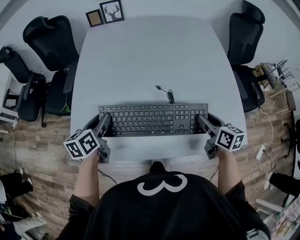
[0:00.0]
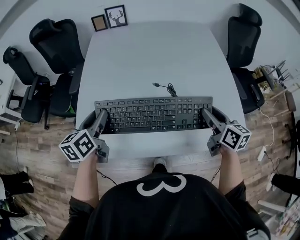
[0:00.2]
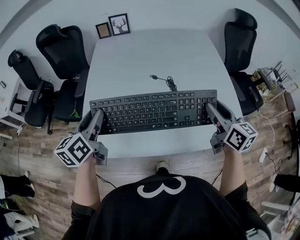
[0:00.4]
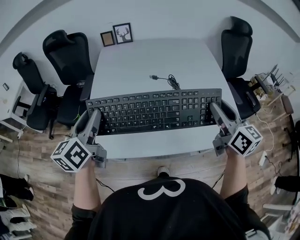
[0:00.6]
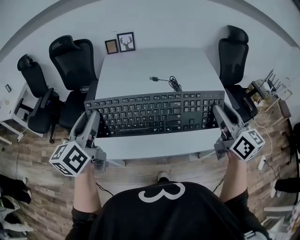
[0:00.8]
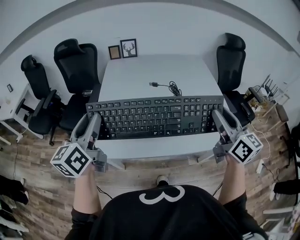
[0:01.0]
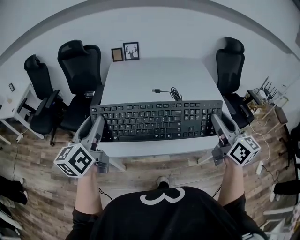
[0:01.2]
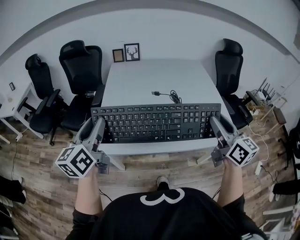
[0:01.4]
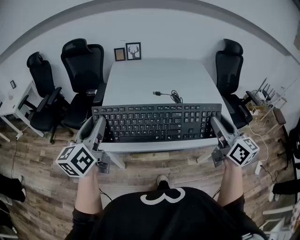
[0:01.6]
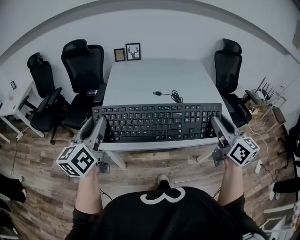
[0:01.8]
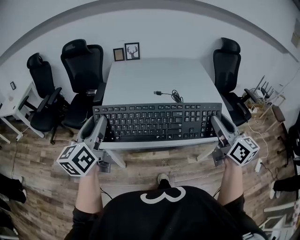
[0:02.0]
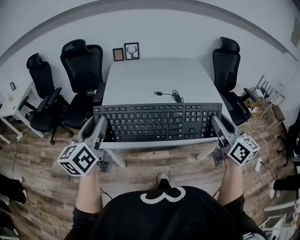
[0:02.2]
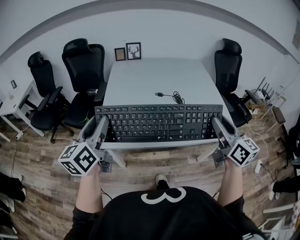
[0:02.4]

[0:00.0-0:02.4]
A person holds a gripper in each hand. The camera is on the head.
0:00.0 to 0:01.2: The left gripper heads downward, covering some 10 cm, and swivels roughly 30 degrees. Meanwhile the right gripper travels upward and back again, about 5 cm each way, and changes its angle by some 30 degrees.
0:01.2 to 0:02.4: The two grippers keep their place.

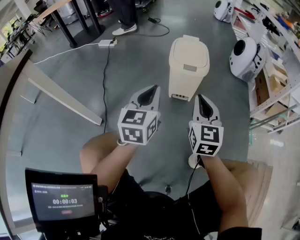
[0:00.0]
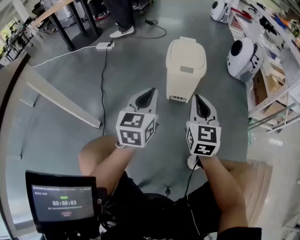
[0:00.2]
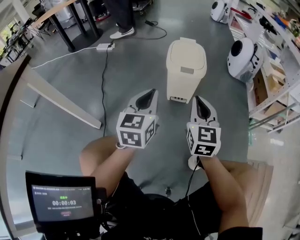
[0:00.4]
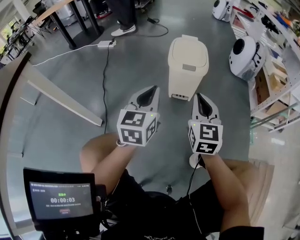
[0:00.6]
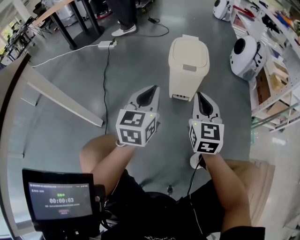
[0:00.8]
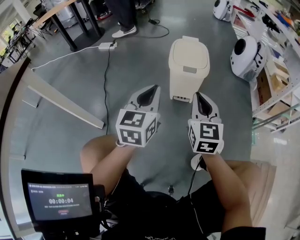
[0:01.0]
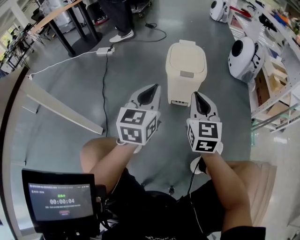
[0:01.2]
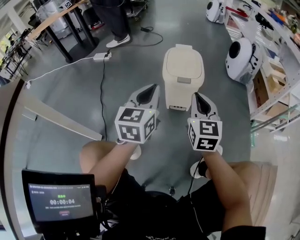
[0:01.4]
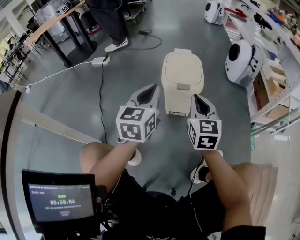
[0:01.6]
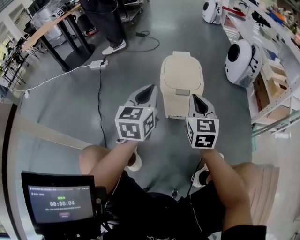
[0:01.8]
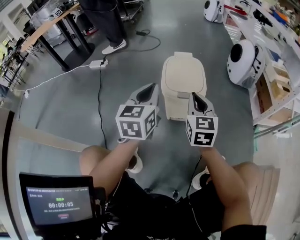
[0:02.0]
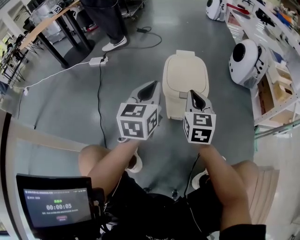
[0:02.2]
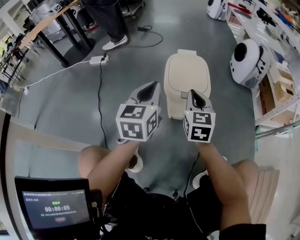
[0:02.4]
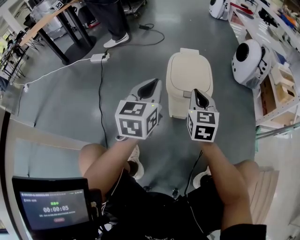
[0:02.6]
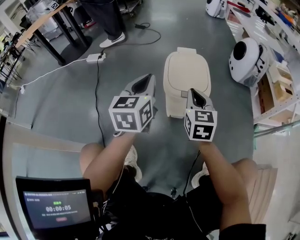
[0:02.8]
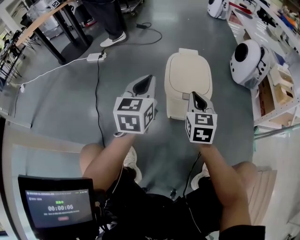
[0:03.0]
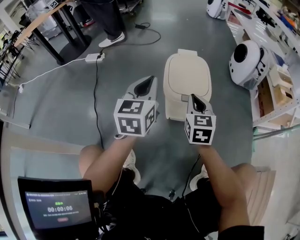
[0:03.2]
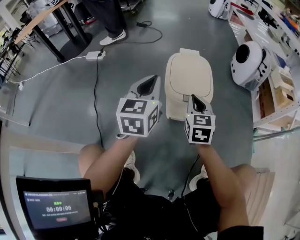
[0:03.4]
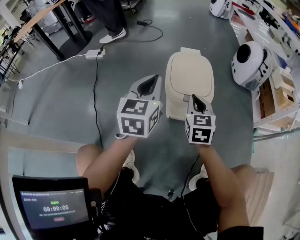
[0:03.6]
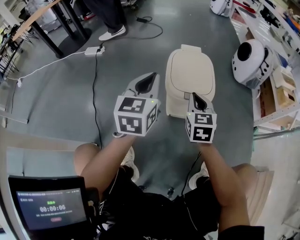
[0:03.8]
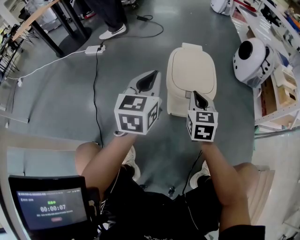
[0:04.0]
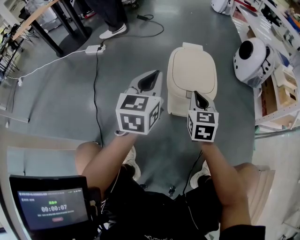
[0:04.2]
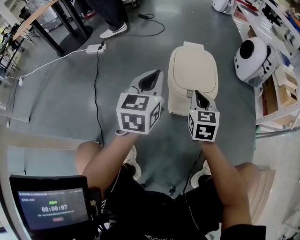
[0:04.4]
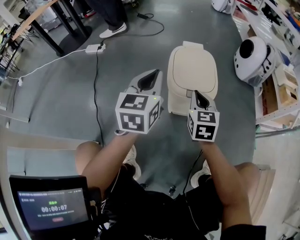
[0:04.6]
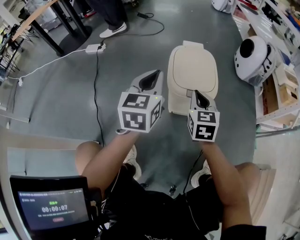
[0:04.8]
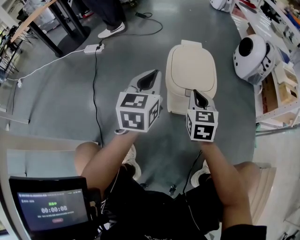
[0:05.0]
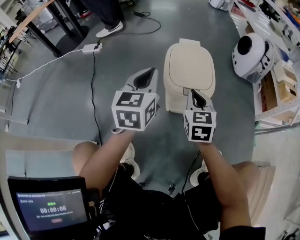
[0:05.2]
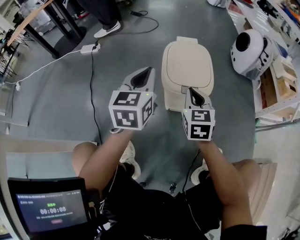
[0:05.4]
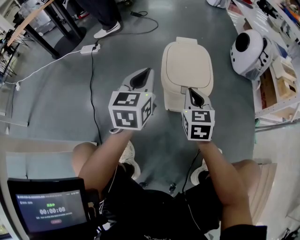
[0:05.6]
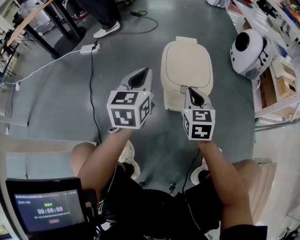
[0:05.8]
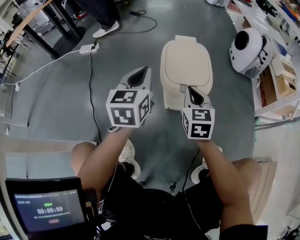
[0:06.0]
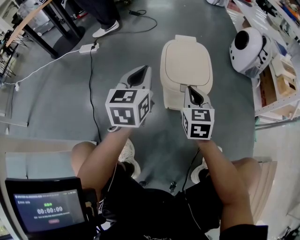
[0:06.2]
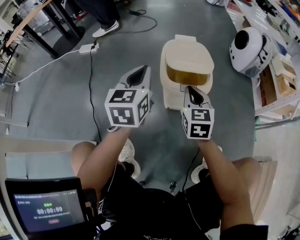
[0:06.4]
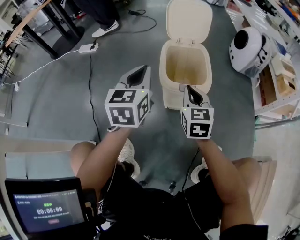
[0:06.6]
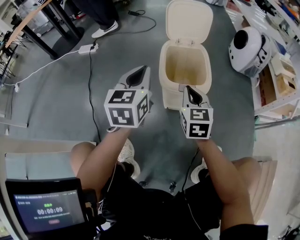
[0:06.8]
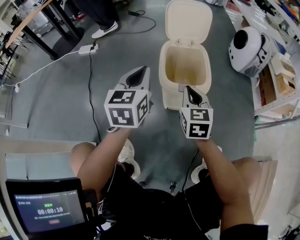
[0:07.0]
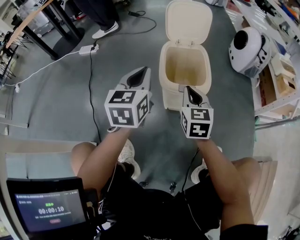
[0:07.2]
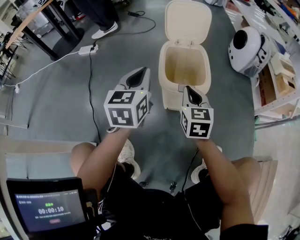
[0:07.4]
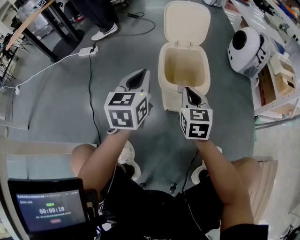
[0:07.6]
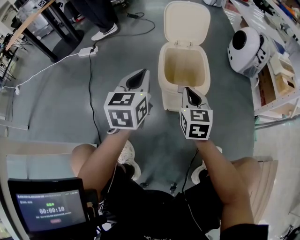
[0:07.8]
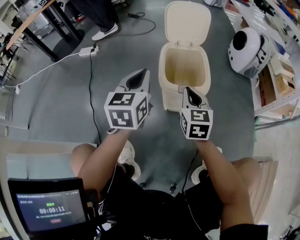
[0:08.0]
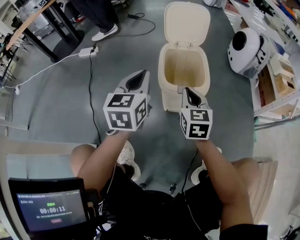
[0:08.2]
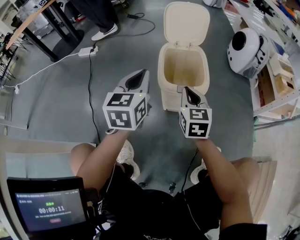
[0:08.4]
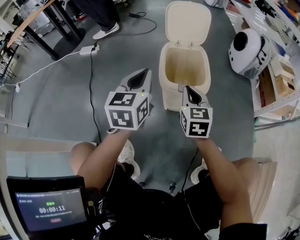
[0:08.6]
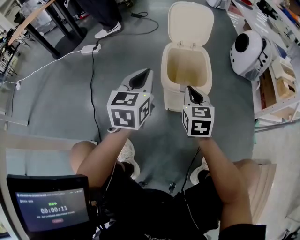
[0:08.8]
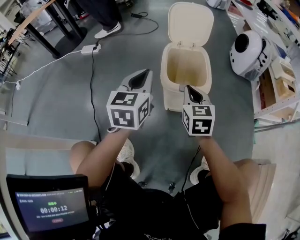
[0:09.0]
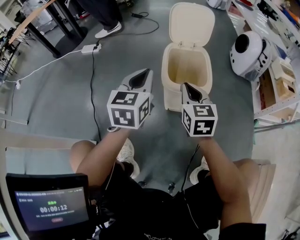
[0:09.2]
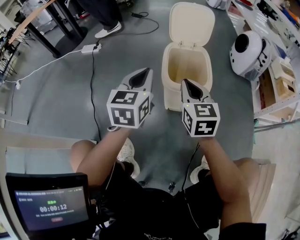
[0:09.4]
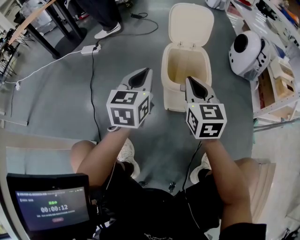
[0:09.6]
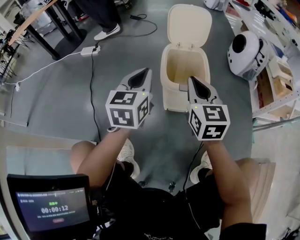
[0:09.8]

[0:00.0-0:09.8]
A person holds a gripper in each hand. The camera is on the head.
0:00.0 to 0:01.4: Both grippers move forward, roughly 5 cm.
0:01.4 to 0:02.8: Both grippers travel together forward, roughly 15 cm.
0:02.8 to 0:04.2: The right gripper shifts about 5 cm downward.
0:04.2 to 0:05.6: There are only small adjustments of the grippers.
0:05.6 to 0:07.0: Both grippers stay put.
0:07.0 to 0:08.4: Neither gripper changes place.
0:08.4 to 0:09.8: The right gripper goes roughly 10 cm upward.

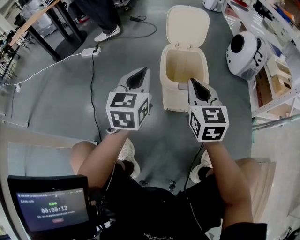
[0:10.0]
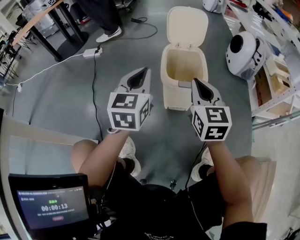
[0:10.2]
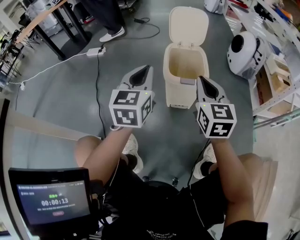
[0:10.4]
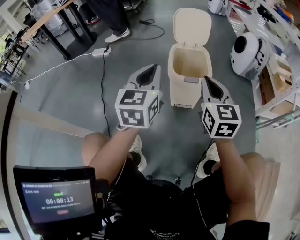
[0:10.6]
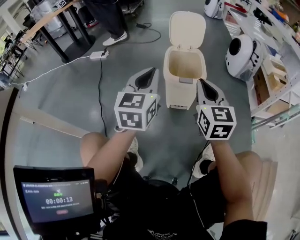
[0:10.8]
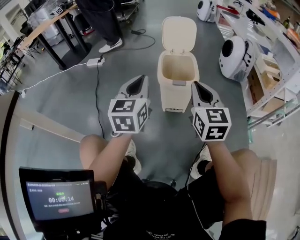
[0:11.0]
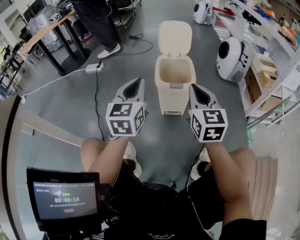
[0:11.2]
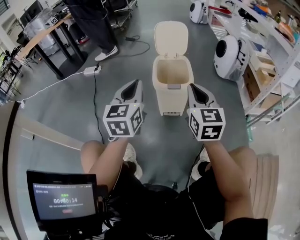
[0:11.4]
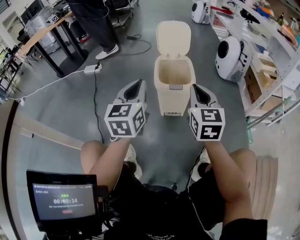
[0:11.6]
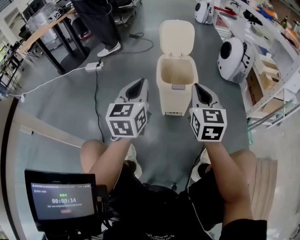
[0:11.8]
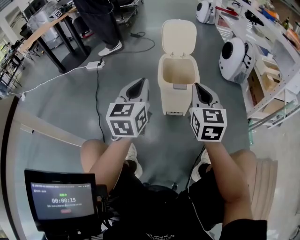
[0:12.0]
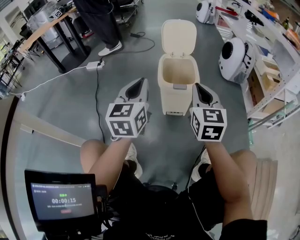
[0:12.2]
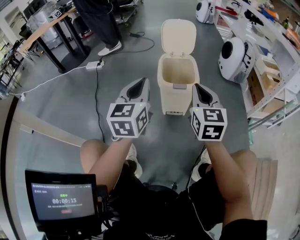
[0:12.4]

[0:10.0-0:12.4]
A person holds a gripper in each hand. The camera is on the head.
0:10.0 to 0:11.2: Both grippers travel together backward, approximately 10 cm.
0:11.2 to 0:12.4: There are only small adjustments of the grippers.

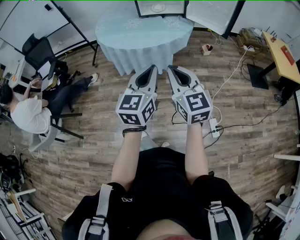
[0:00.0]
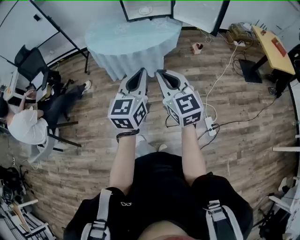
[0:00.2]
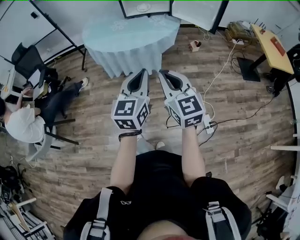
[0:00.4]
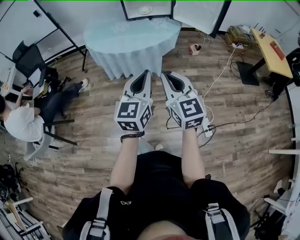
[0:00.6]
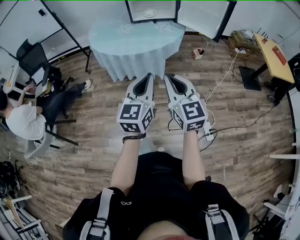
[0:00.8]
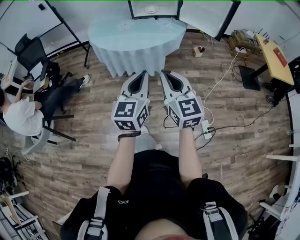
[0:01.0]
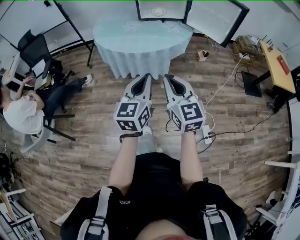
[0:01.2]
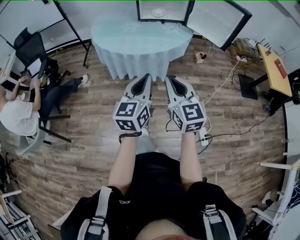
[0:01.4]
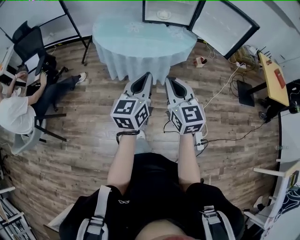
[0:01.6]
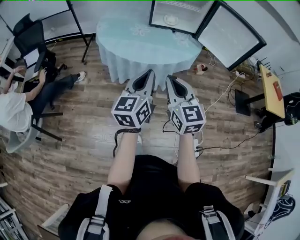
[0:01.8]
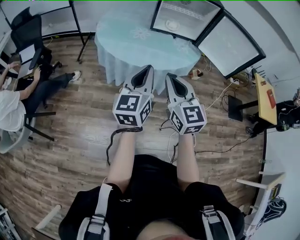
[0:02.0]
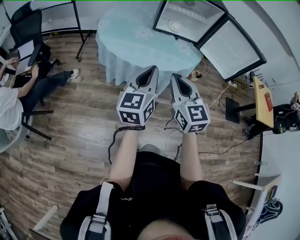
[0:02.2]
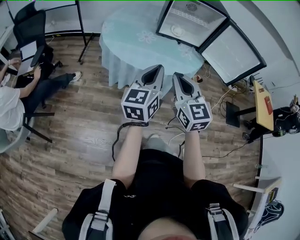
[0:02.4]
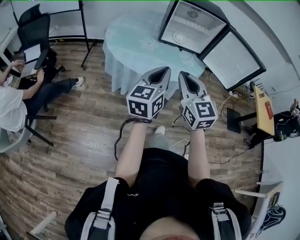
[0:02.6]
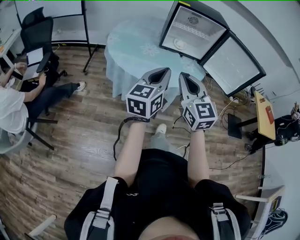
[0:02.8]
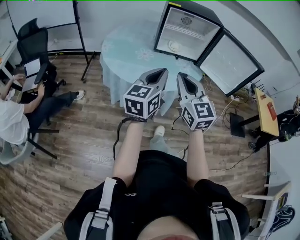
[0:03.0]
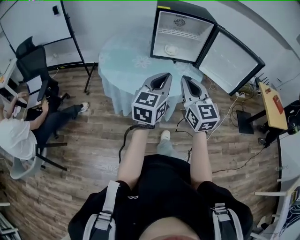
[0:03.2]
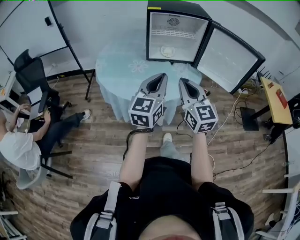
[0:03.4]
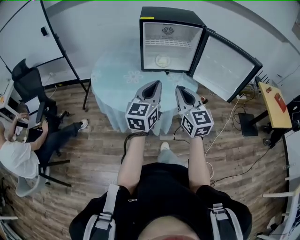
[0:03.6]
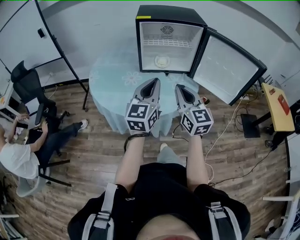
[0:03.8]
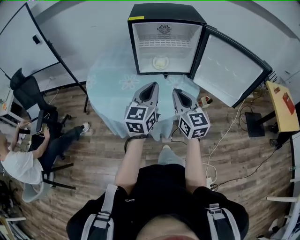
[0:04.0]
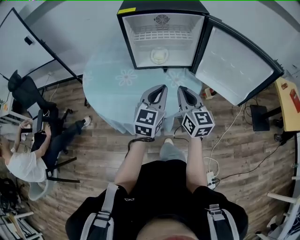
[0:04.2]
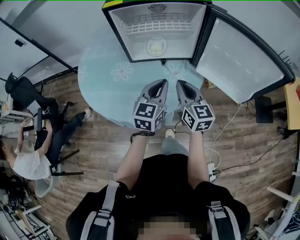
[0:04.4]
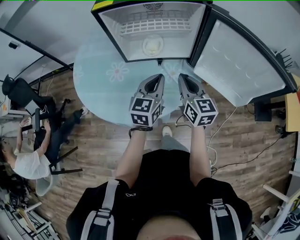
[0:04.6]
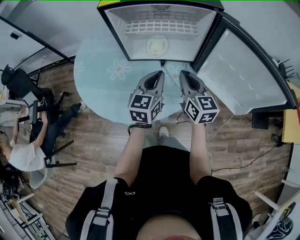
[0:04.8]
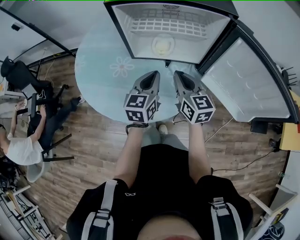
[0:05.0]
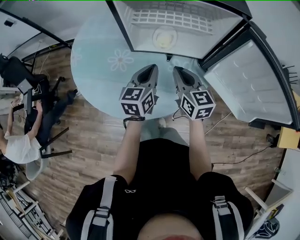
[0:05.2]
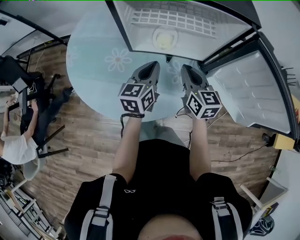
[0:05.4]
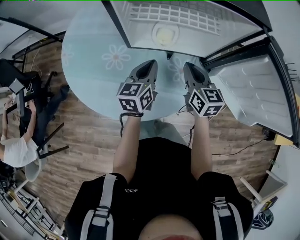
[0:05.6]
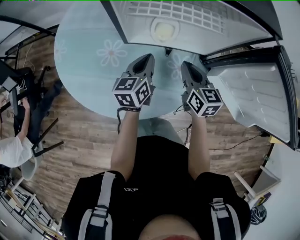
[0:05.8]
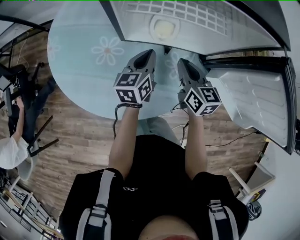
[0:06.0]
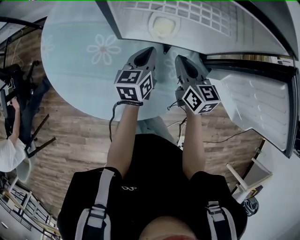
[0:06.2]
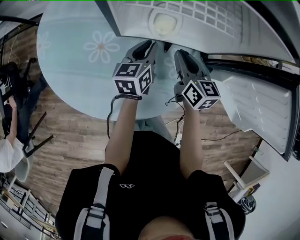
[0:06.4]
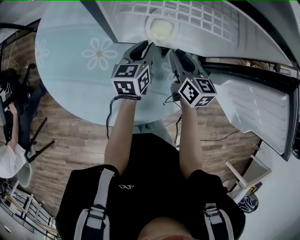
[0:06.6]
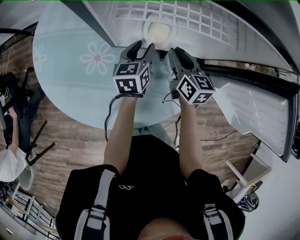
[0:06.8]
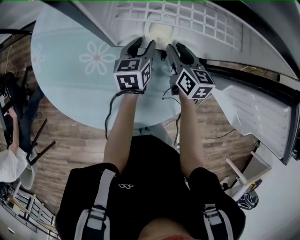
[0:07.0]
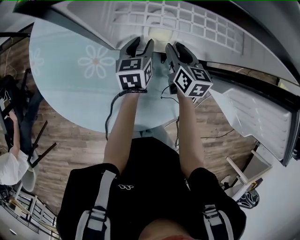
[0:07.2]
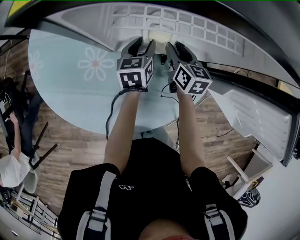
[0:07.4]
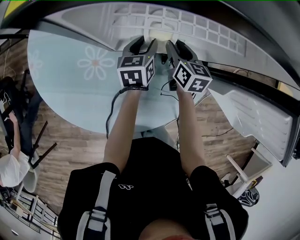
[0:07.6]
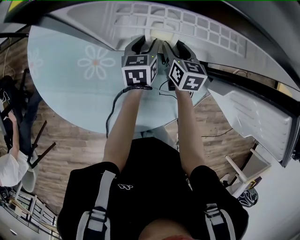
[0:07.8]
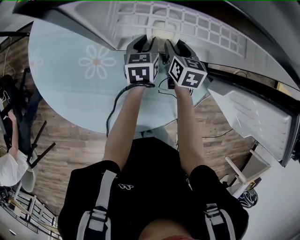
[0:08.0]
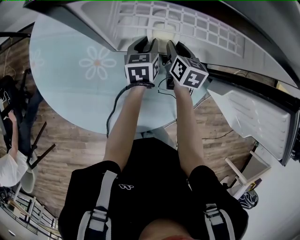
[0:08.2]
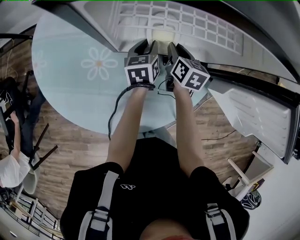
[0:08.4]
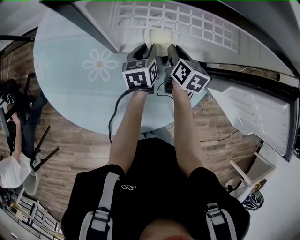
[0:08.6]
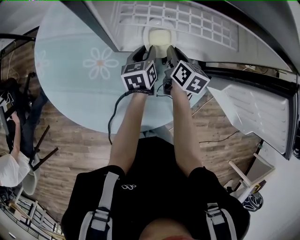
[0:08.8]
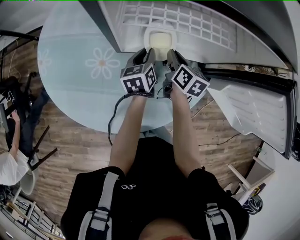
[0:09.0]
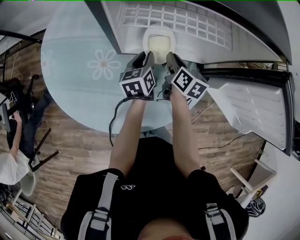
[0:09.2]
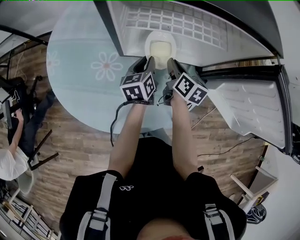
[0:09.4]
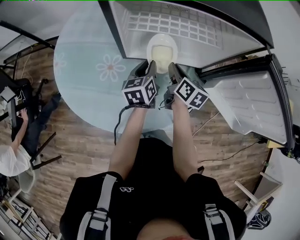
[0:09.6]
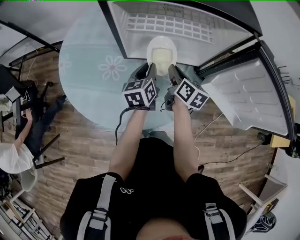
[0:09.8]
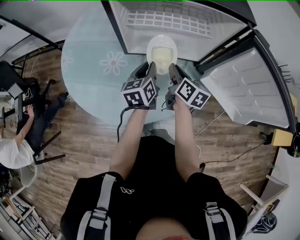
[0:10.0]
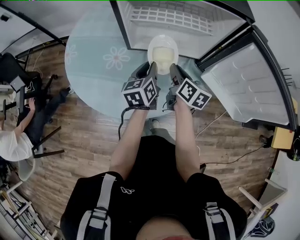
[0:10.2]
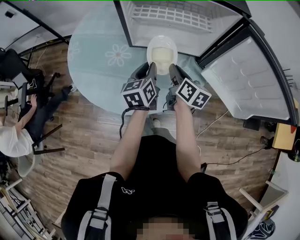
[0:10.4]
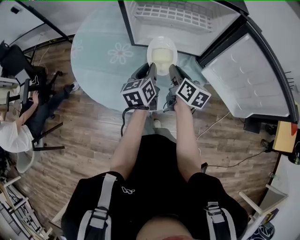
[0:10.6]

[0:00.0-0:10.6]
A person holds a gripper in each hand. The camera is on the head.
0:00.0 to 0:01.6: The two grippers go roughly 10 cm forward and to the left.
0:01.6 to 0:03.0: The right gripper heads forward, to the left and upward, covering approximately 20 cm; the left gripper travels forward and upward by approximately 15 cm.
0:03.0 to 0:04.6: Both grippers are carried forward and to the right, some 40 cm. The right gripper turns by approximately 30 degrees.
0:04.6 to 0:06.0: Both grippers move forward, downward and to the left, some 20 cm. The left gripper changes its angle by approximately 30 degrees.
0:06.0 to 0:07.6: The grippers both shift forward and downward by some 15 cm. The right gripper opens up. Meanwhile the left gripper opens up.
0:07.6 to 0:09.0: The right gripper closes up.
0:09.0 to 0:10.6: The two grippers go approximately 20 cm backward and upward.
